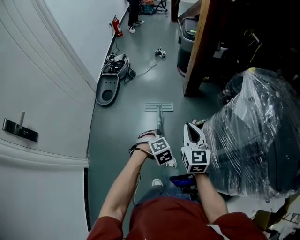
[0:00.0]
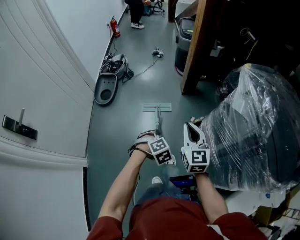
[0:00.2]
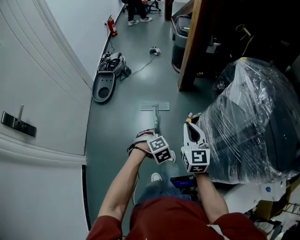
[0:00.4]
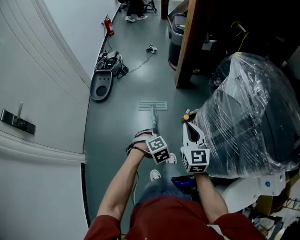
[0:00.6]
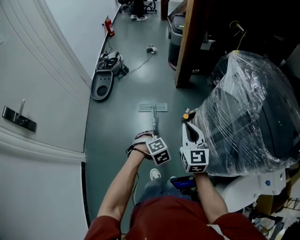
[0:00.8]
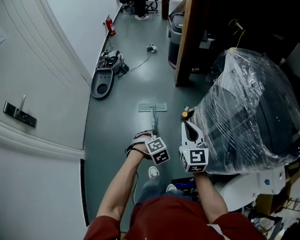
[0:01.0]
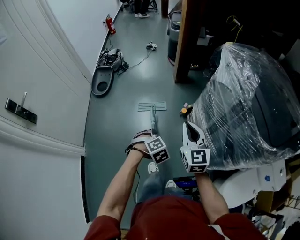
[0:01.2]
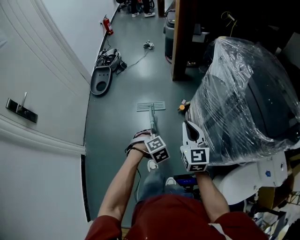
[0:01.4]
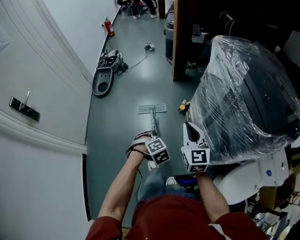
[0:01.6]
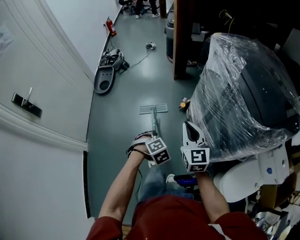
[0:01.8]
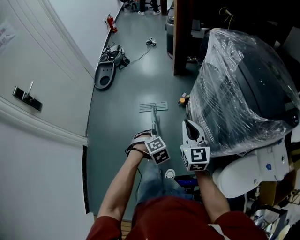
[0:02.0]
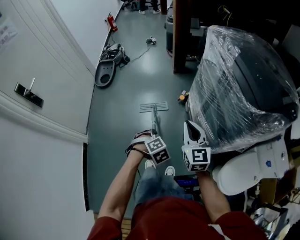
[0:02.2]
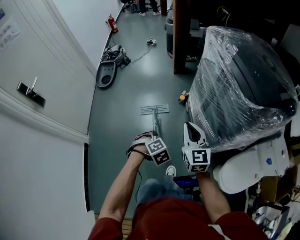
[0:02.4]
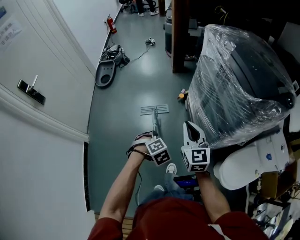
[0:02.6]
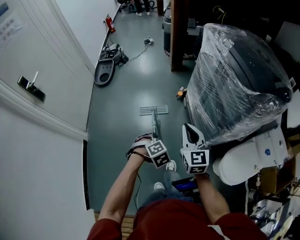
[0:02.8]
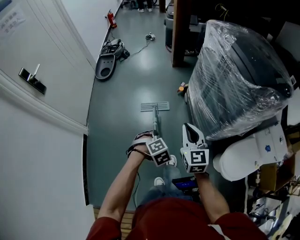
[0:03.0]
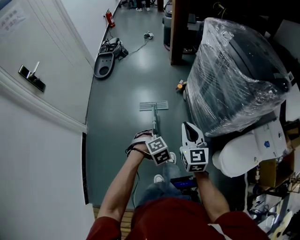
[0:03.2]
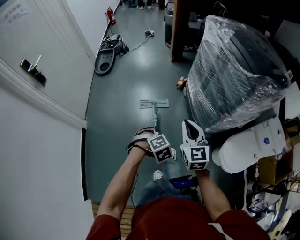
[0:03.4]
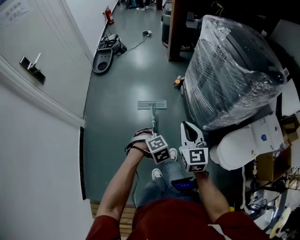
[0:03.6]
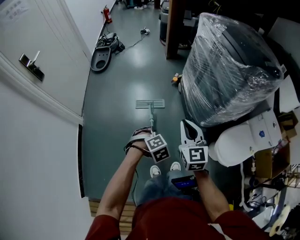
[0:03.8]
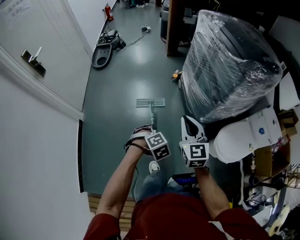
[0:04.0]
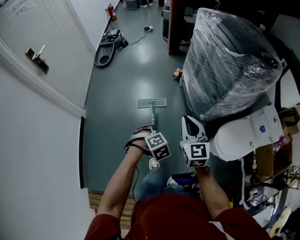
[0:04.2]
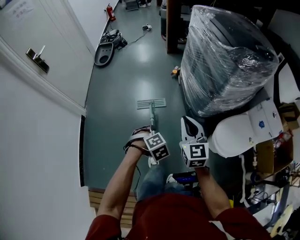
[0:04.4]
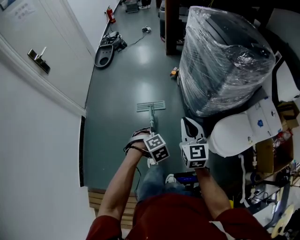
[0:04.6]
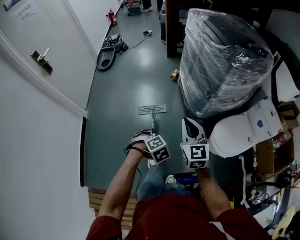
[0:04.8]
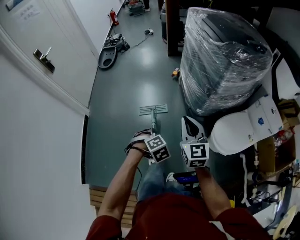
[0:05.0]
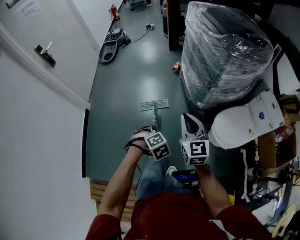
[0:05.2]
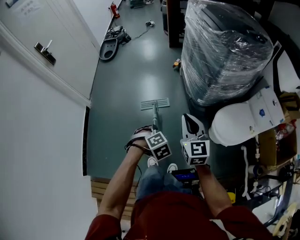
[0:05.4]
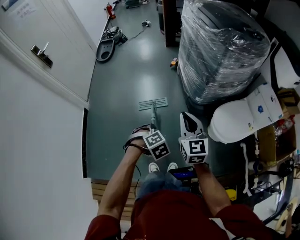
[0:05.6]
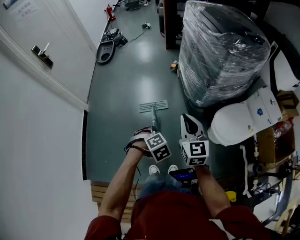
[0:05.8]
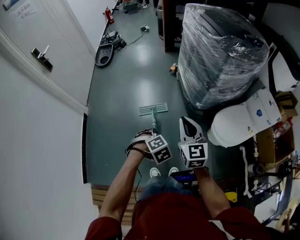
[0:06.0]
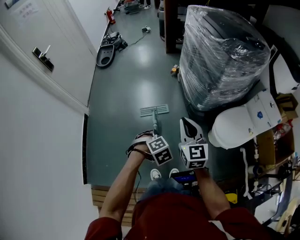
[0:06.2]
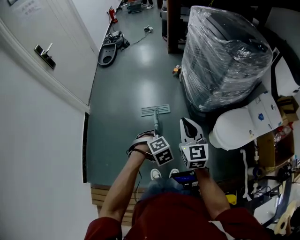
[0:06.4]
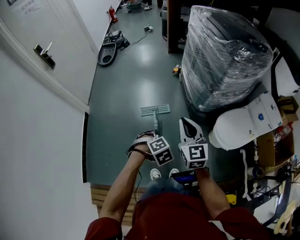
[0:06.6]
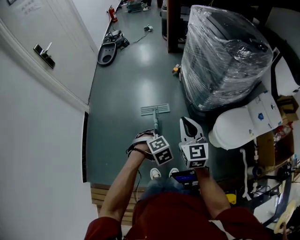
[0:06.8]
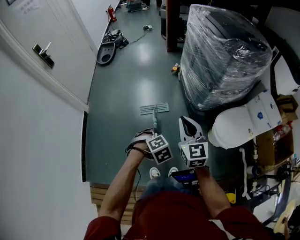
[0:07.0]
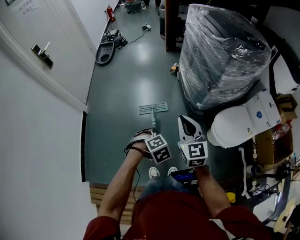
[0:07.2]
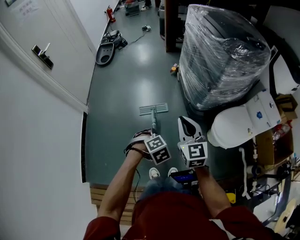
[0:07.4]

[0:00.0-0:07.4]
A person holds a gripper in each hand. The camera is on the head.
0:00.0 to 0:01.4: The right gripper moves some 25 cm.
0:01.4 to 0:03.0: The right gripper ends up roughly 30 cm from where it was.
0:03.0 to 0:04.4: The right gripper changes place by some 25 cm.
0:04.4 to 0:06.0: The right gripper moves approximately 10 cm.

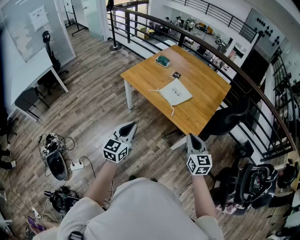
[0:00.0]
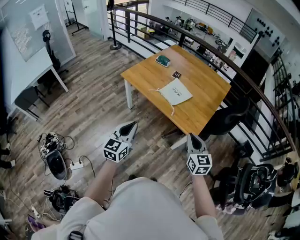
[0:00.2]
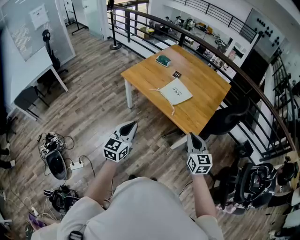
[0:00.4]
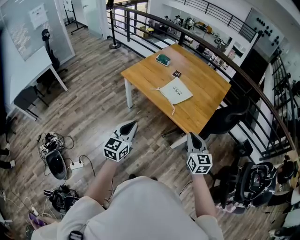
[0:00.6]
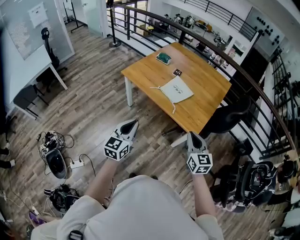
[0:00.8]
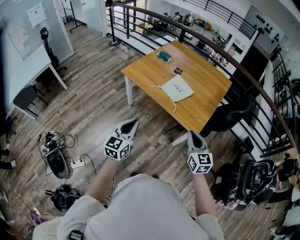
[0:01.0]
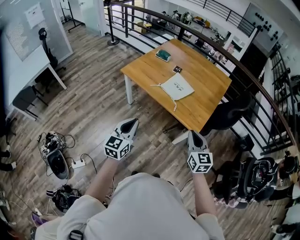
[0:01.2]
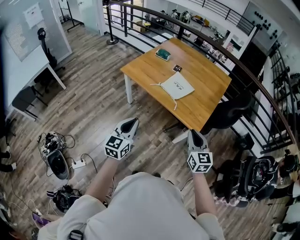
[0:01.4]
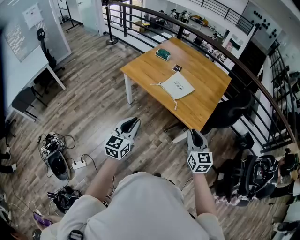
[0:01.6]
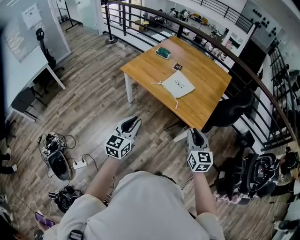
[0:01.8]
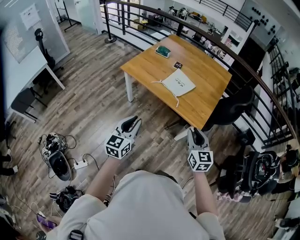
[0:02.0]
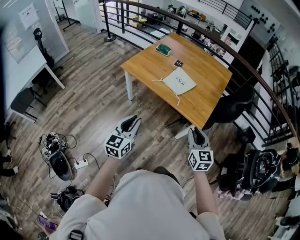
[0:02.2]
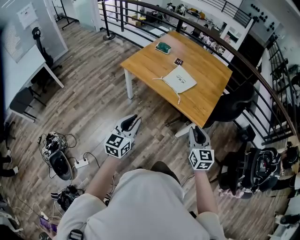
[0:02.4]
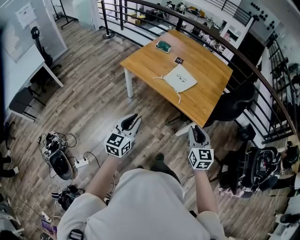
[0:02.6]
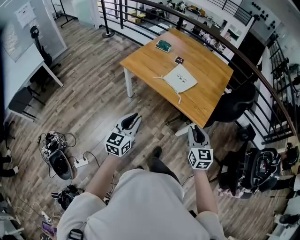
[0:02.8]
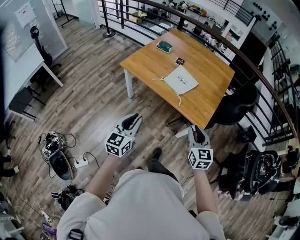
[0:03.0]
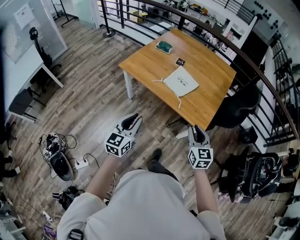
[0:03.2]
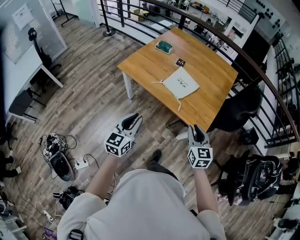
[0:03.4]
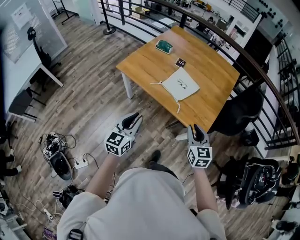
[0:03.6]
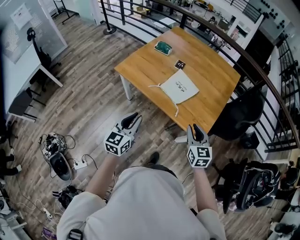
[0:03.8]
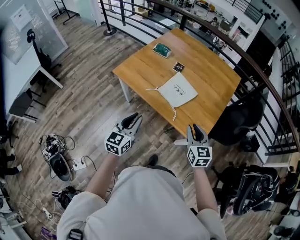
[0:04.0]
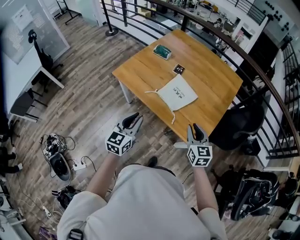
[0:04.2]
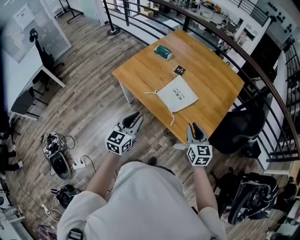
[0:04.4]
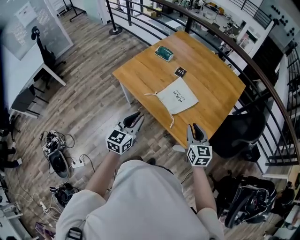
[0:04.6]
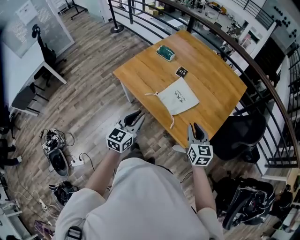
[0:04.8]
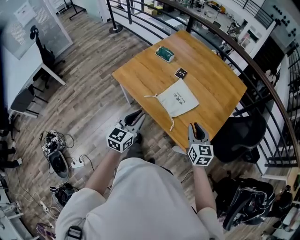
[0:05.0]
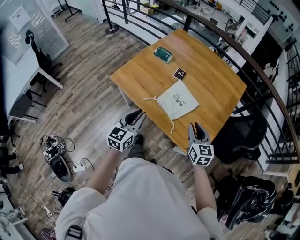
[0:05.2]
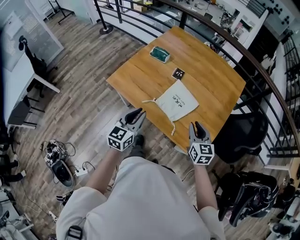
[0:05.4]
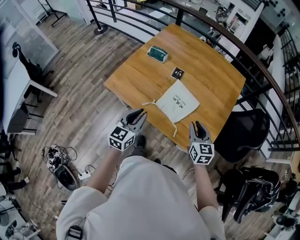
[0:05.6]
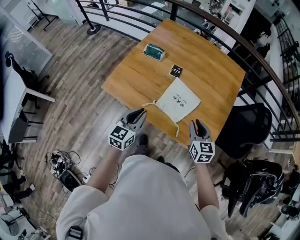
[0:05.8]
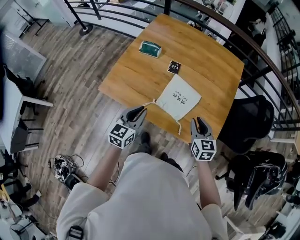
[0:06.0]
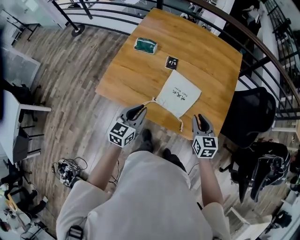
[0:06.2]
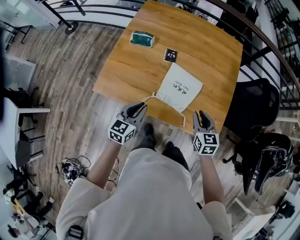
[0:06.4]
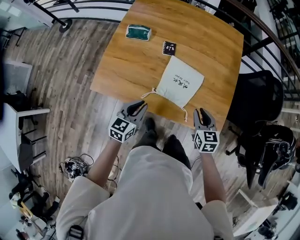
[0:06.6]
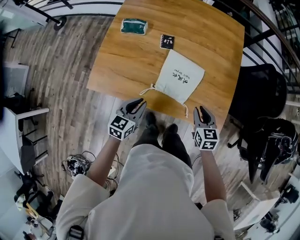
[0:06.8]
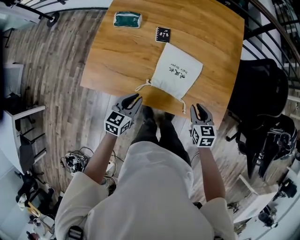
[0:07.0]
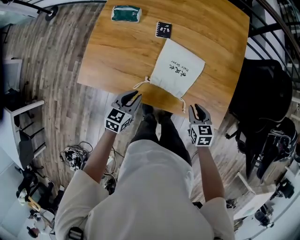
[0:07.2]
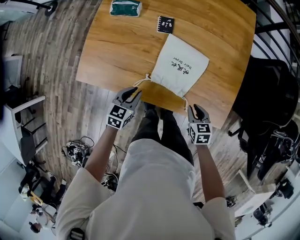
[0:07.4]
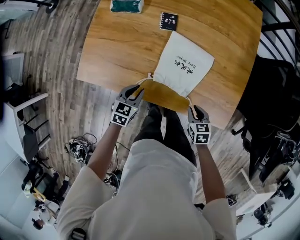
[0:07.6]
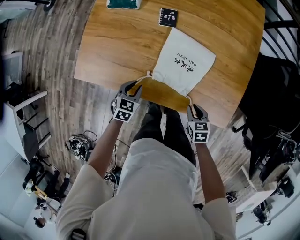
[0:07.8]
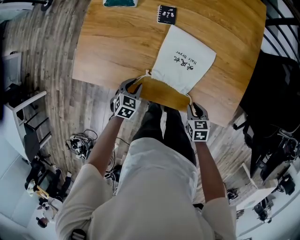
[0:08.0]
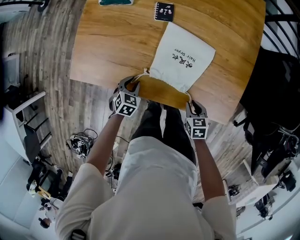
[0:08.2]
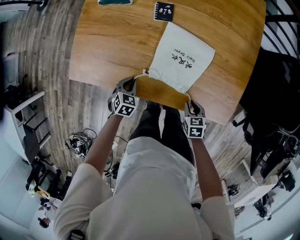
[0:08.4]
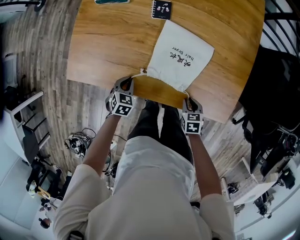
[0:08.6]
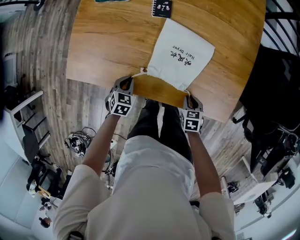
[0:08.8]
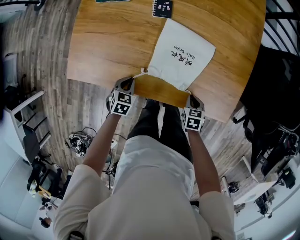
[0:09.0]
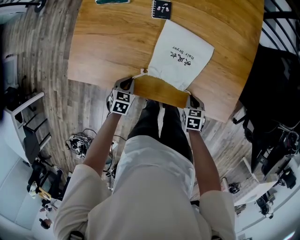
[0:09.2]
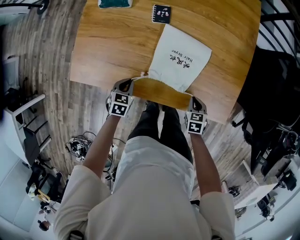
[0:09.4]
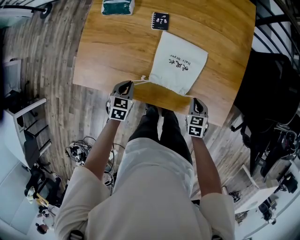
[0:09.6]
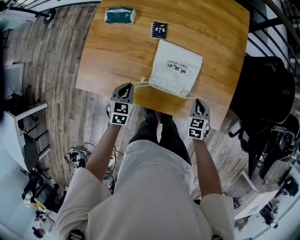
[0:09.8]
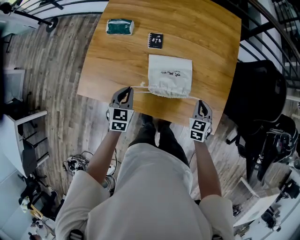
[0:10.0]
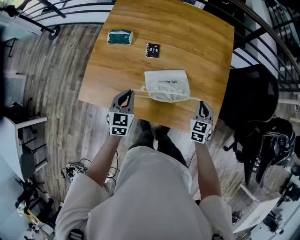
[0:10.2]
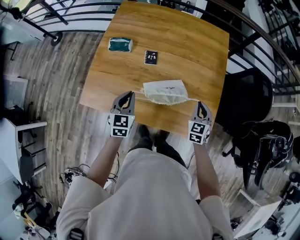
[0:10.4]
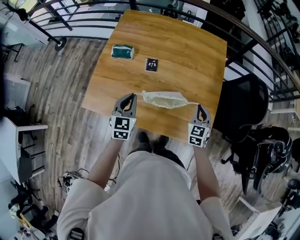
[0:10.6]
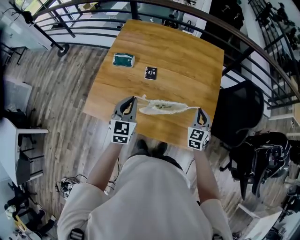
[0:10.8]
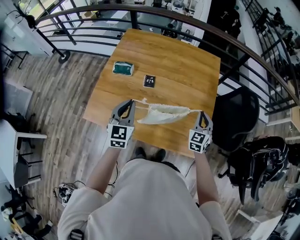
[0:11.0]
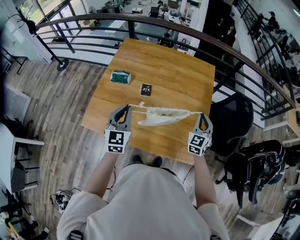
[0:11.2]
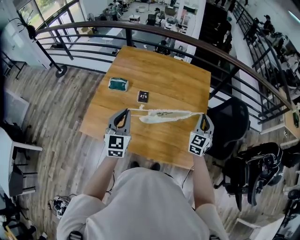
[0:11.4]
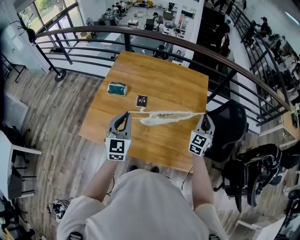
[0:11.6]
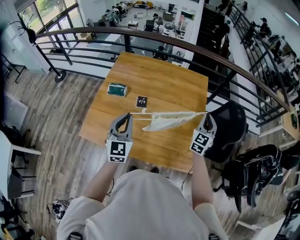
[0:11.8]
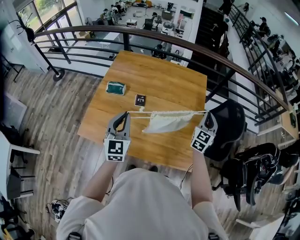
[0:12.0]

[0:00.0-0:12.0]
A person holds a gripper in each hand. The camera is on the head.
0:00.0 to 0:01.6: The grippers move only a little.
0:01.6 to 0:03.0: The left gripper moves some 5 cm; the right gripper shifts by approximately 5 cm.
0:03.0 to 0:04.4: The two grippers go approximately 25 cm forward.
0:04.4 to 0:06.0: Both grippers travel together forward, approximately 20 cm.
0:06.0 to 0:07.6: The grippers both shift downward by some 25 cm. The right gripper changes its angle by some 30 degrees, while the left gripper changes its angle by some 30 degrees.
0:07.6 to 0:09.0: The two grippers go roughly 10 cm downward.
0:09.0 to 0:10.4: The left gripper moves upward, roughly 30 cm, and tips its fingers upward by some 30 degrees; the right gripper travels upward and forward by about 30 cm, and angles its fingers upward, by roughly 40 degrees.
0:10.4 to 0:12.0: The left gripper travels upward by about 20 cm, and rotates some 20 degrees, while the right gripper heads upward and to the right, covering about 20 cm, and turns by approximately 30 degrees.

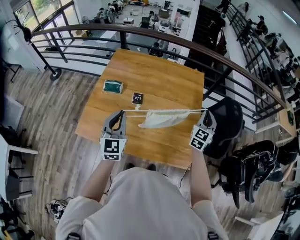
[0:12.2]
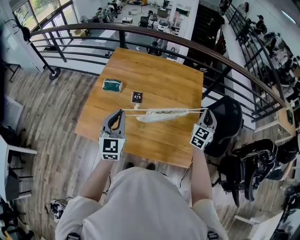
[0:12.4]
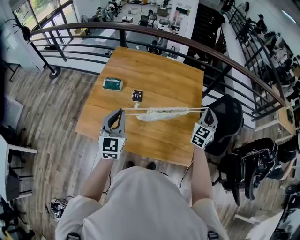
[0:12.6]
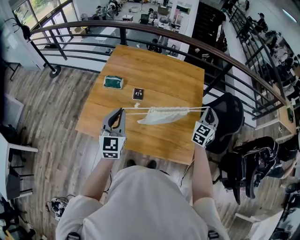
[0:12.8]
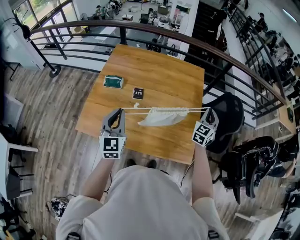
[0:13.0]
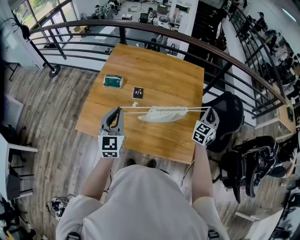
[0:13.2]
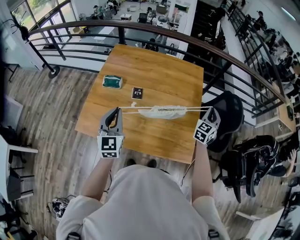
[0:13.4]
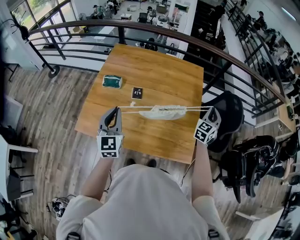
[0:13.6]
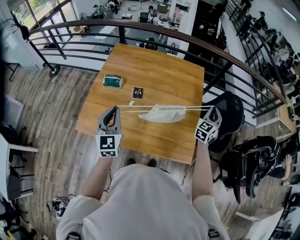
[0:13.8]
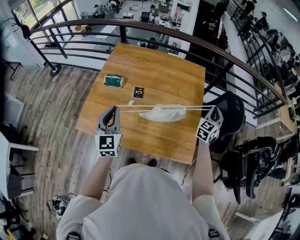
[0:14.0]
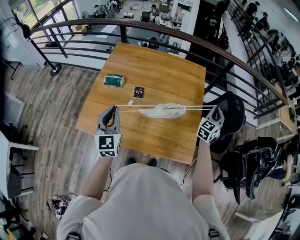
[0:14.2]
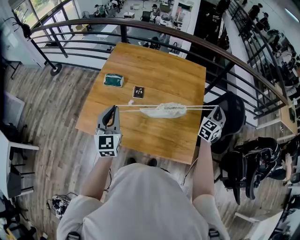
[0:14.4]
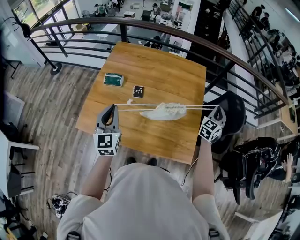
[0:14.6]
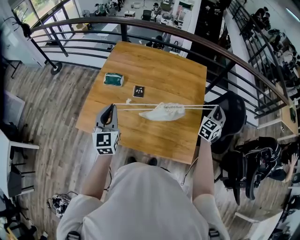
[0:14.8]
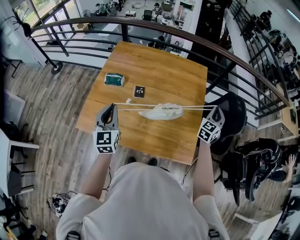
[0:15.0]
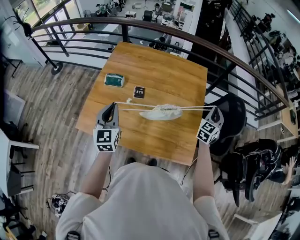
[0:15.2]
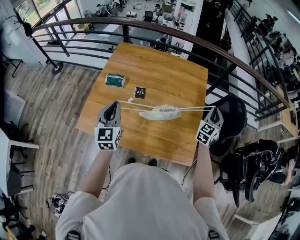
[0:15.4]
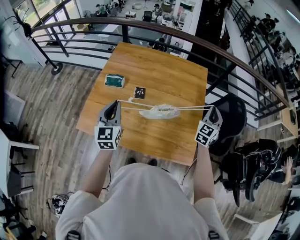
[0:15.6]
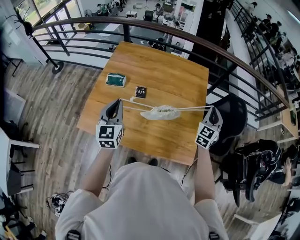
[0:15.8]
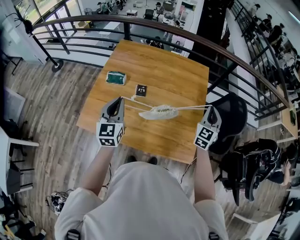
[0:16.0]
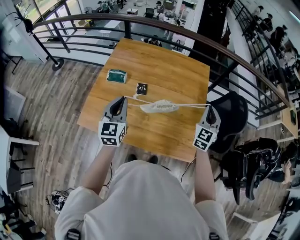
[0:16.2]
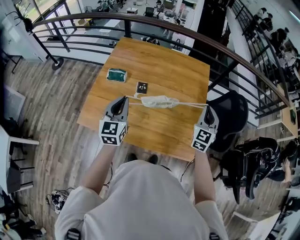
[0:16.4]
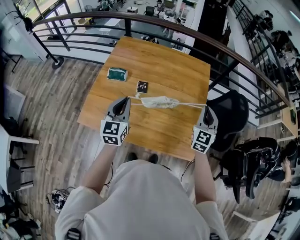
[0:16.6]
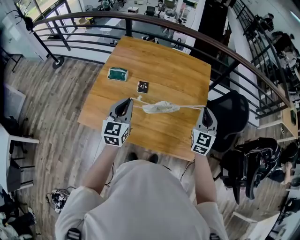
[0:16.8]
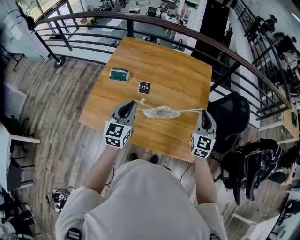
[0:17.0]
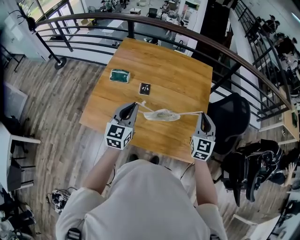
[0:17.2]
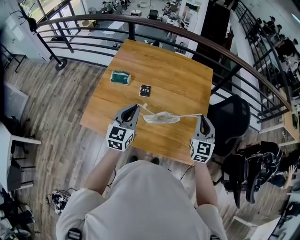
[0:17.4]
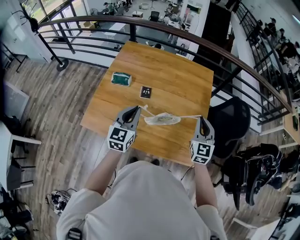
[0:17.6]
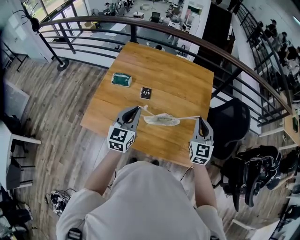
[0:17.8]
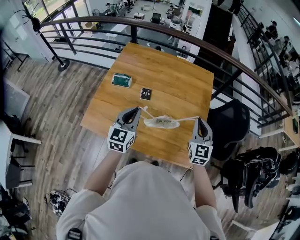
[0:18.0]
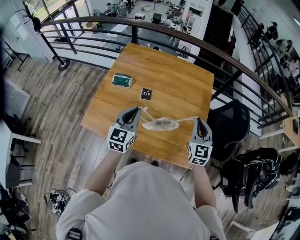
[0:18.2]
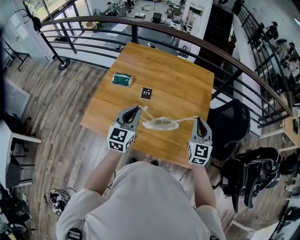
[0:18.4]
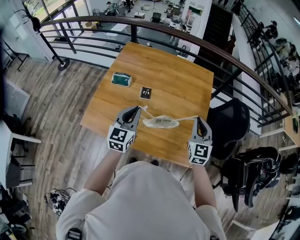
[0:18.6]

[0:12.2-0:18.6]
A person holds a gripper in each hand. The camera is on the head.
0:12.2 to 0:13.8: The right gripper shifts by approximately 5 cm.
0:13.8 to 0:15.4: The grippers stay close to where they were, moving slightly.
0:15.4 to 0:17.0: The right gripper moves to the left and backward, about 15 cm, and swivels approximately 20 degrees. Meanwhile the left gripper ends up roughly 5 cm from where it was.
0:17.0 to 0:18.6: There are only small adjustments of the grippers.
